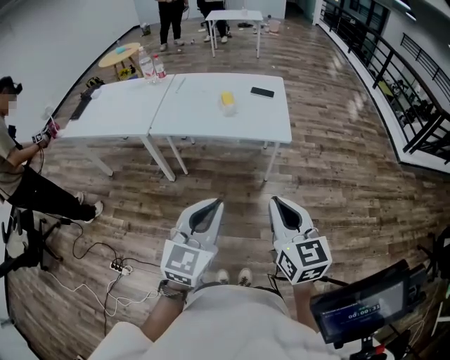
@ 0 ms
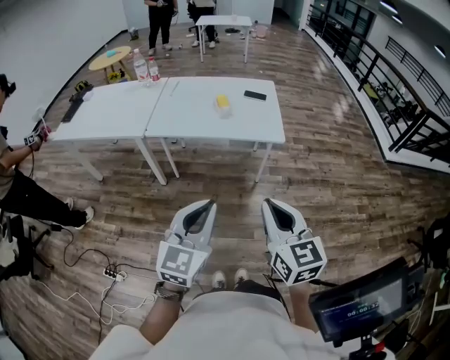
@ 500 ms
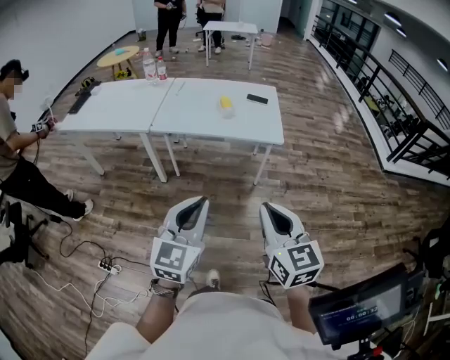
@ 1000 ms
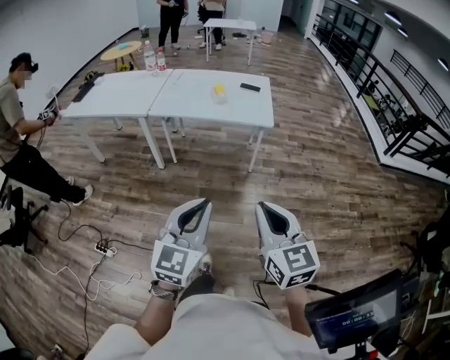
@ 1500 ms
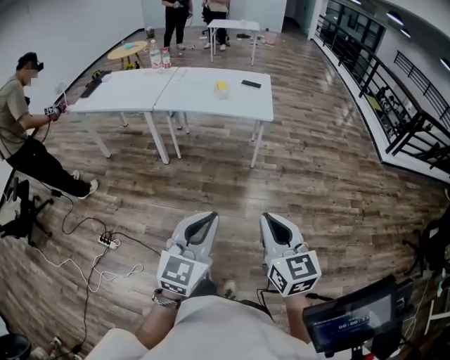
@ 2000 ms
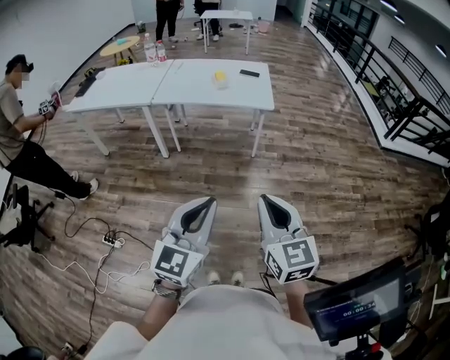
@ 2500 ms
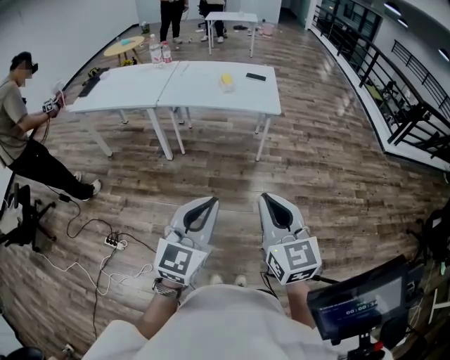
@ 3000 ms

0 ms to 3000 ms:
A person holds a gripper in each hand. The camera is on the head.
0 ms to 1500 ms: Both grippers travel together backward, roughly 15 cm.

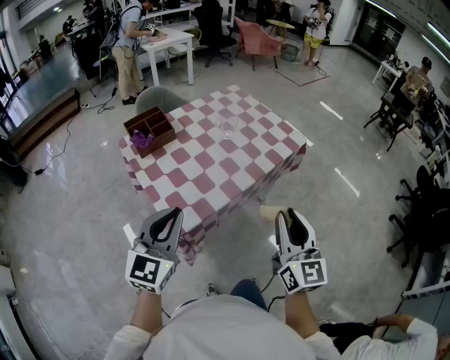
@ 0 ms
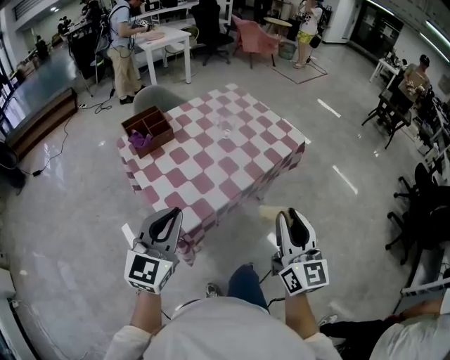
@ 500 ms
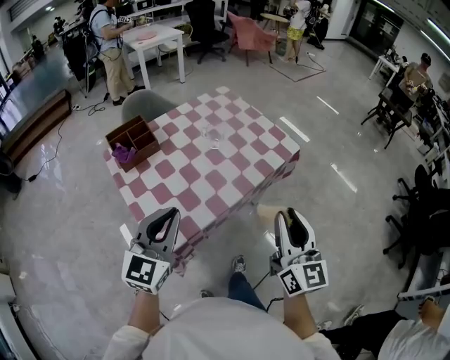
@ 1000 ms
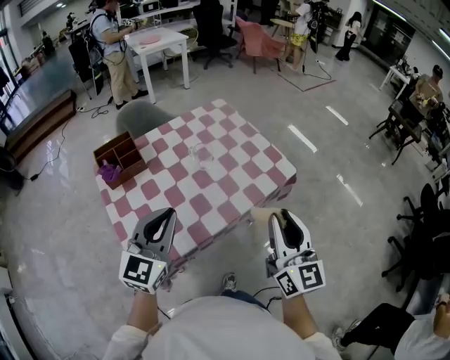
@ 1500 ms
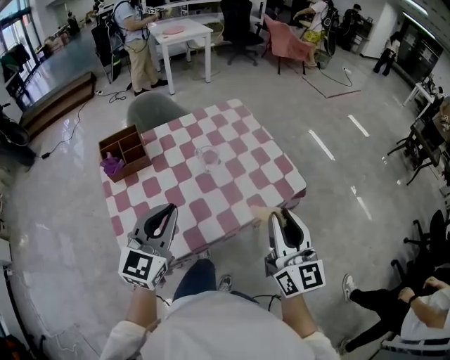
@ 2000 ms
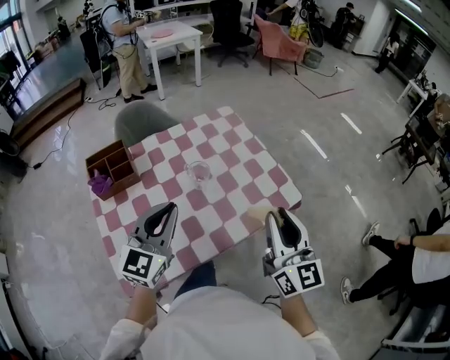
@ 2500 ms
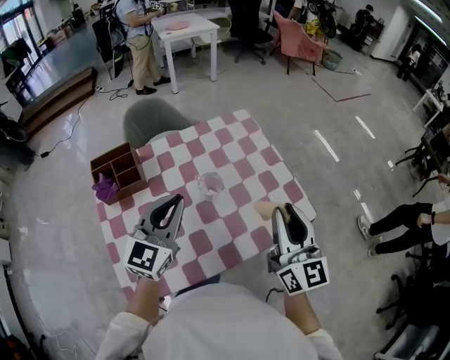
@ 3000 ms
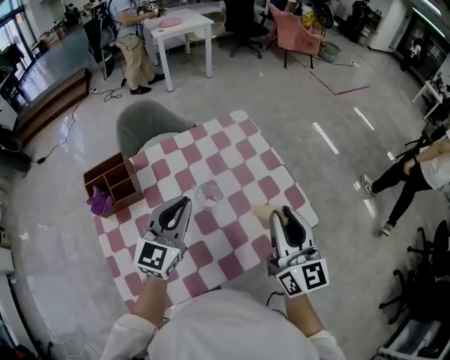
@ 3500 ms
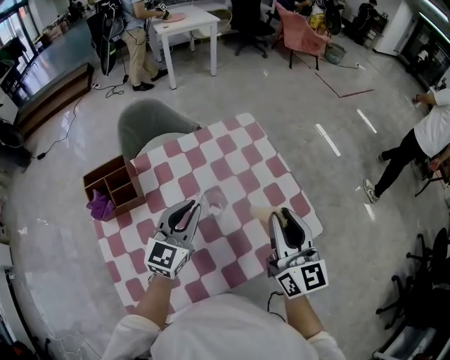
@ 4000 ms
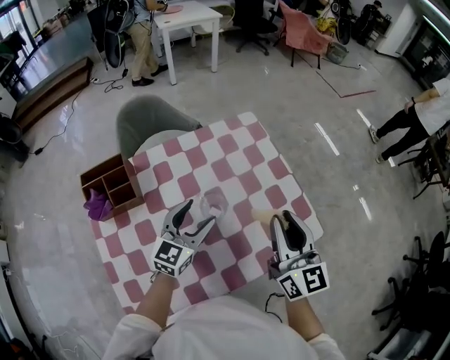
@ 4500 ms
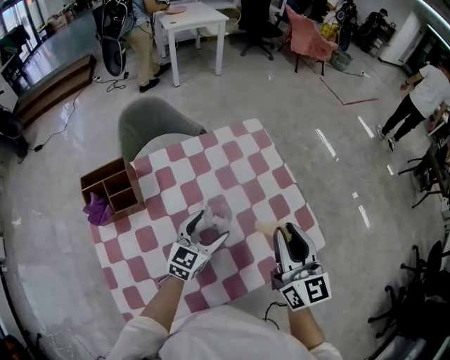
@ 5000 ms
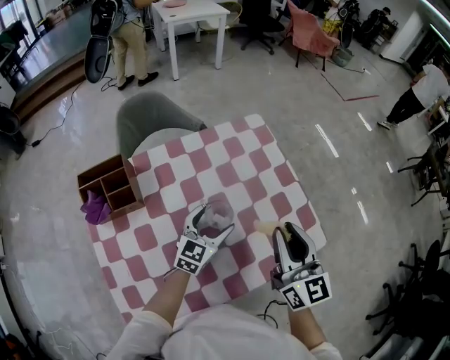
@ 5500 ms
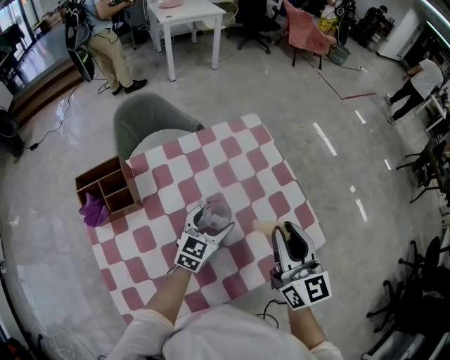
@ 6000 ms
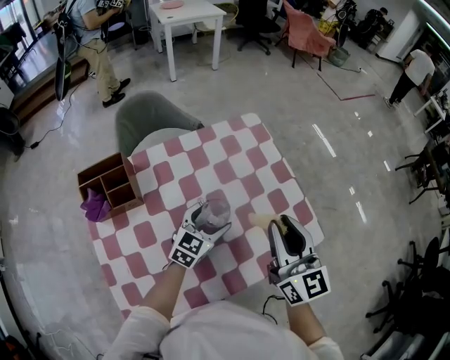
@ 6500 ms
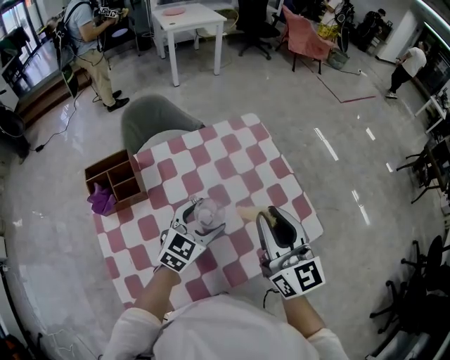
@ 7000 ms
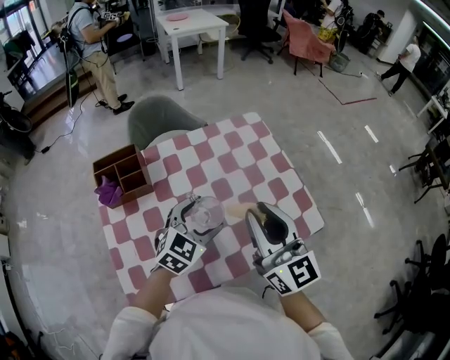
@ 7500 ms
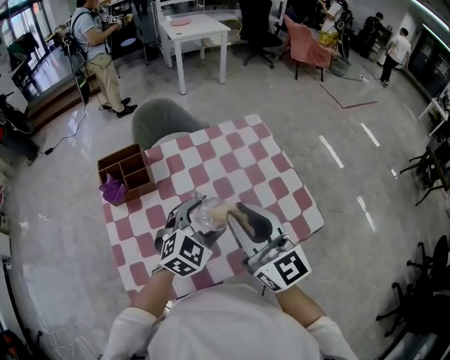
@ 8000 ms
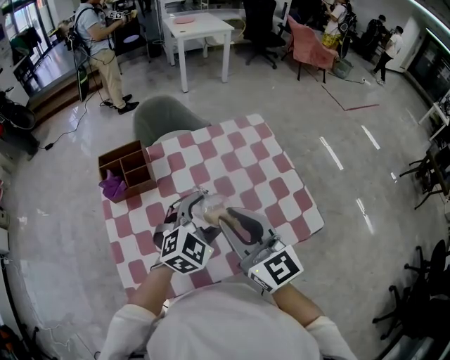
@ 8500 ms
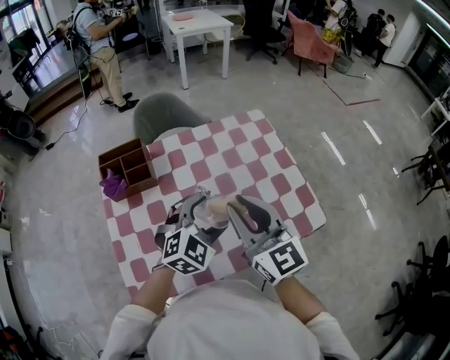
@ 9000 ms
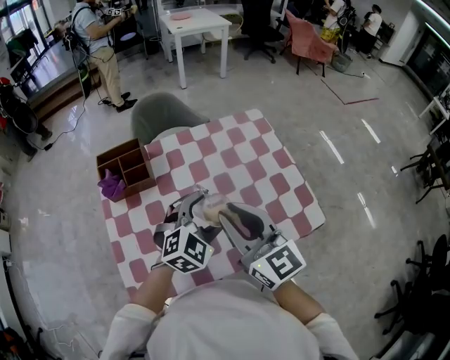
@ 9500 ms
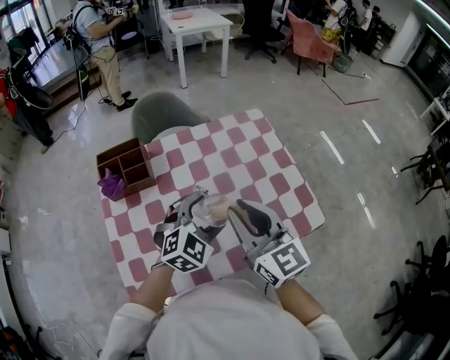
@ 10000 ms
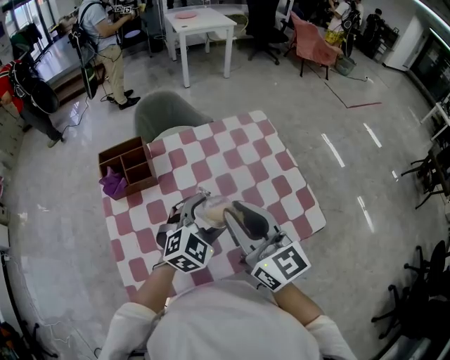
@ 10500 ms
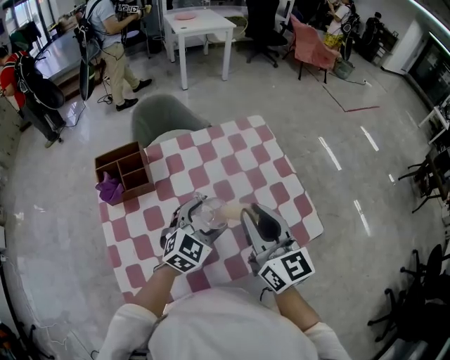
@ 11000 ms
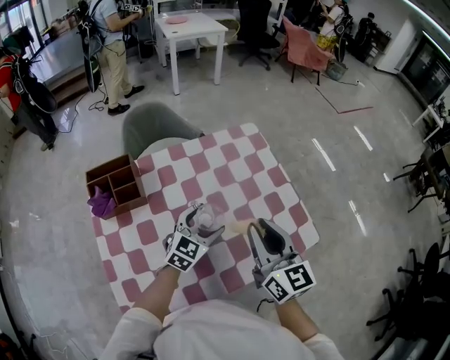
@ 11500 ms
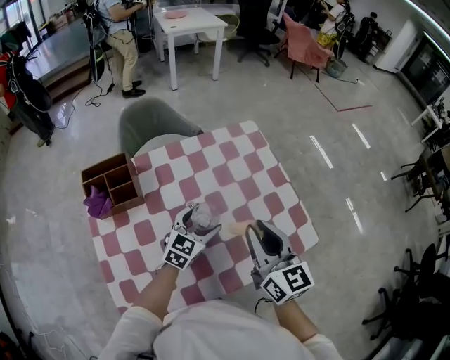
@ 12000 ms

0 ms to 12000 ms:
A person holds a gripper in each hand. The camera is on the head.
0 ms to 2000 ms: The right gripper goes approximately 25 cm forward. The left gripper moves forward and to the right, roughly 25 cm.
2000 ms to 4000 ms: Both grippers move forward, roughly 25 cm.
4000 ms to 6000 ms: The left gripper goes approximately 15 cm downward and to the right, and opens.
6000 ms to 8000 ms: The left gripper goes some 15 cm upward and backward, and turns by some 30 degrees. The right gripper travels to the left, backward and upward by some 15 cm, and rotates roughly 20 degrees.
8000 ms to 10000 ms: There are only small adjustments of the grippers.
10000 ms to 12000 ms: The left gripper moves downward and forward, roughly 15 cm, and turns by some 30 degrees; the right gripper moves to the right, some 5 cm.

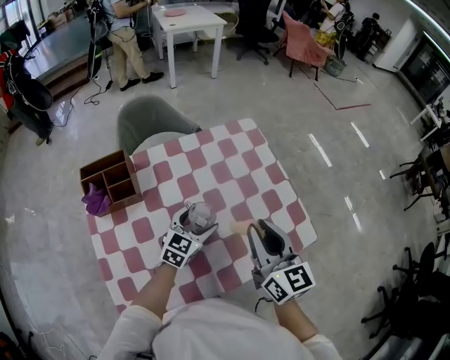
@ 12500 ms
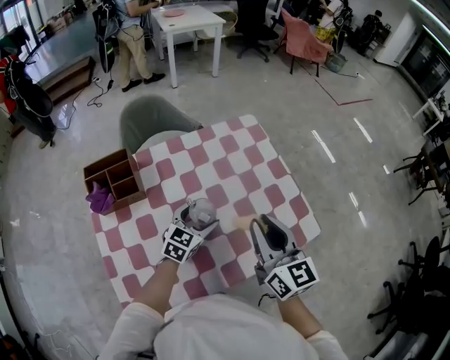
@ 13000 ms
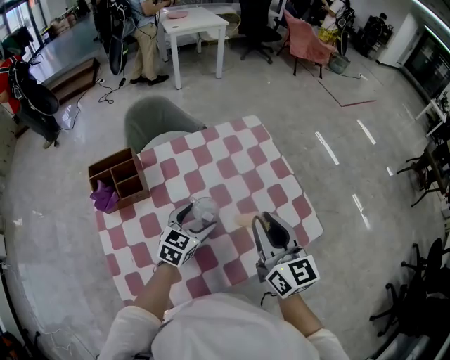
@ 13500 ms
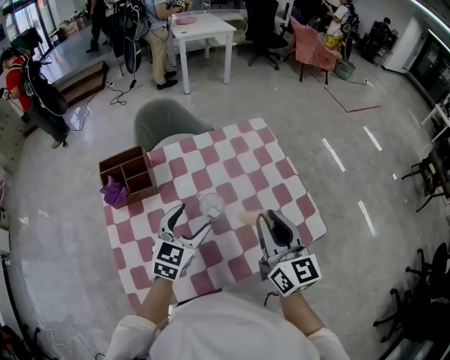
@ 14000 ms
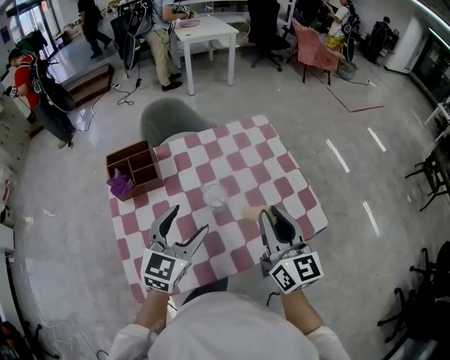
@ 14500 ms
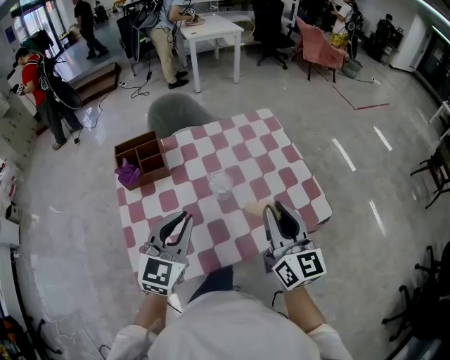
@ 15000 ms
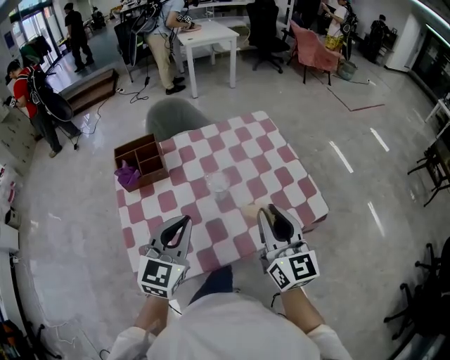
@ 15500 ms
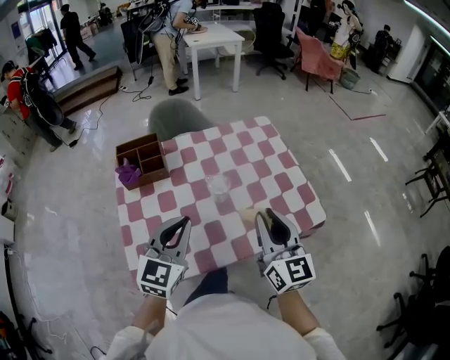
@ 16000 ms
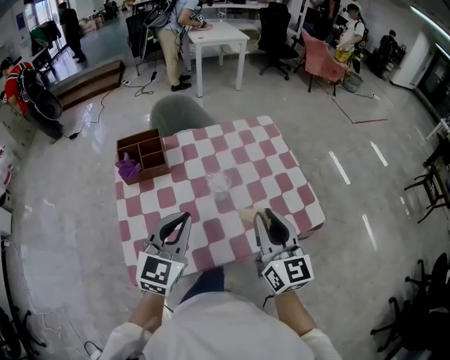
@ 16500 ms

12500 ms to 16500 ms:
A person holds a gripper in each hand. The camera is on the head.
12500 ms to 14500 ms: The left gripper is displaced upward and backward by about 20 cm. The right gripper is displaced backward by roughly 5 cm.
14500 ms to 16500 ms: Both grippers travel together backward, roughly 5 cm. The left gripper closes up.

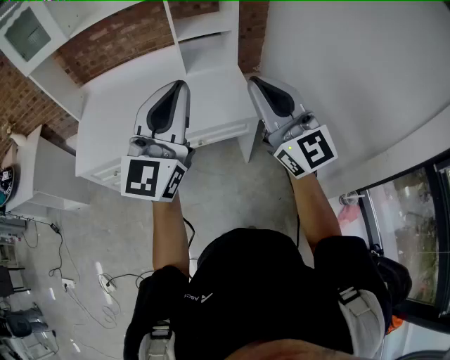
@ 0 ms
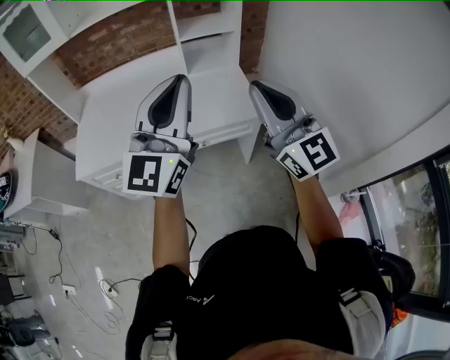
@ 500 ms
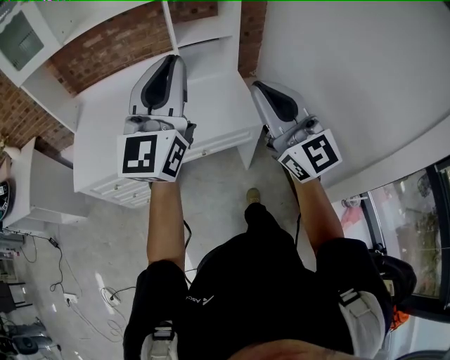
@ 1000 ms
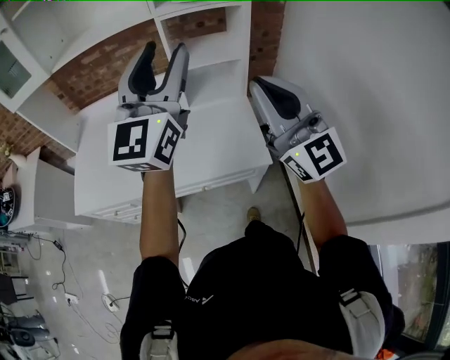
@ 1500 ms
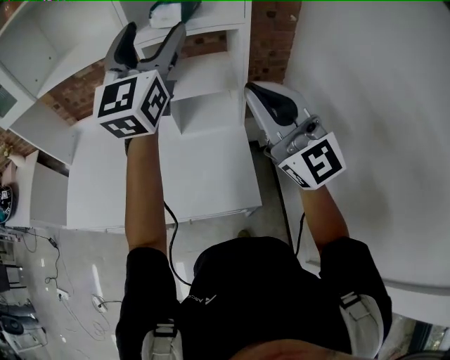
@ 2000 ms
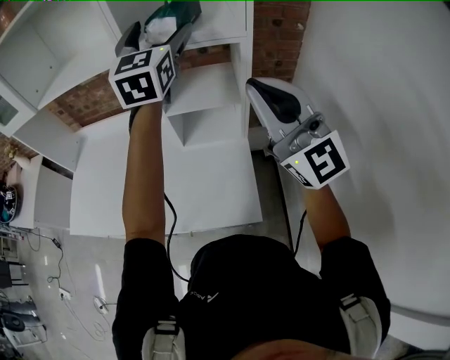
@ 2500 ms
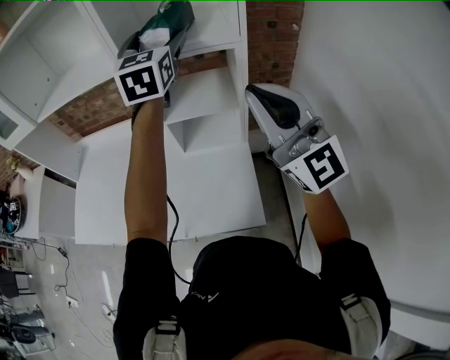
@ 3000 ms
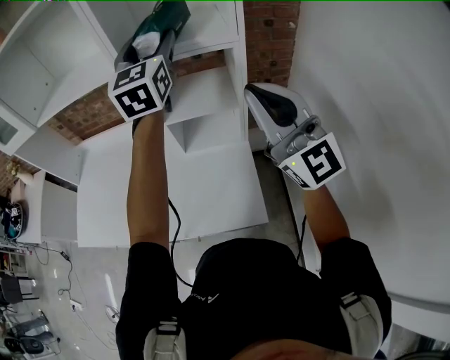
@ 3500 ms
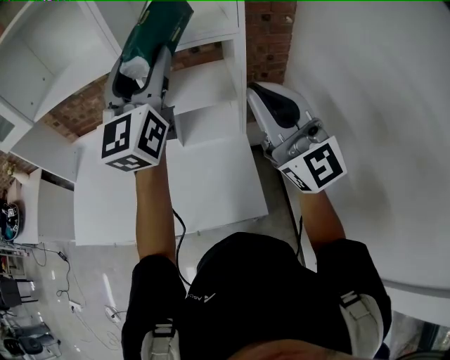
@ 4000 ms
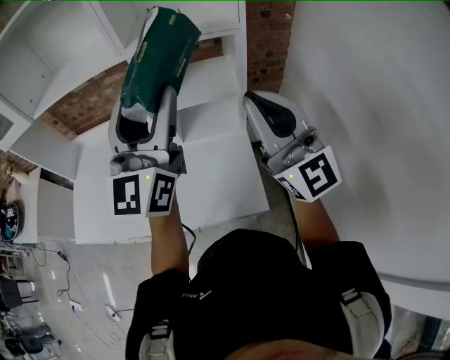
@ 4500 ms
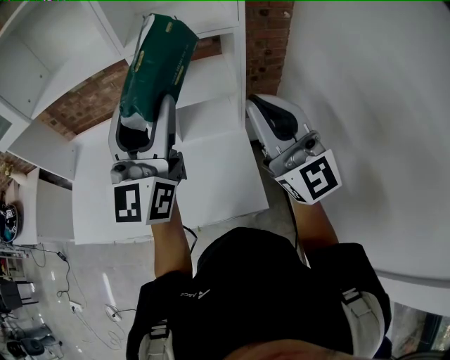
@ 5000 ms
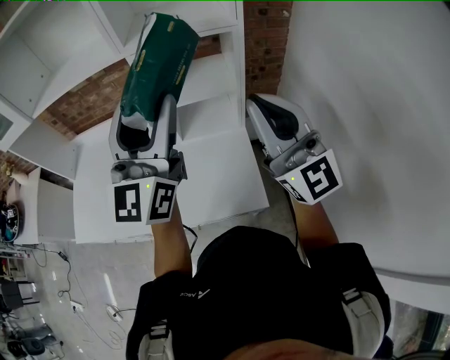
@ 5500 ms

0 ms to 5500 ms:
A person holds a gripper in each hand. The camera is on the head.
0 ms to 2000 ms: The left gripper goes some 30 cm forward, and opens its fingers. Meanwhile the right gripper moves forward, about 20 cm.
2000 ms to 3500 ms: The left gripper goes approximately 10 cm forward. The right gripper ends up about 5 cm from where it was.
3500 ms to 5500 ms: The right gripper heads backward, covering roughly 5 cm. Meanwhile the left gripper moves backward, roughly 20 cm, and rotates roughly 20 degrees.

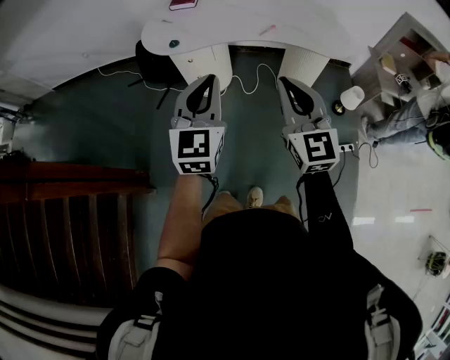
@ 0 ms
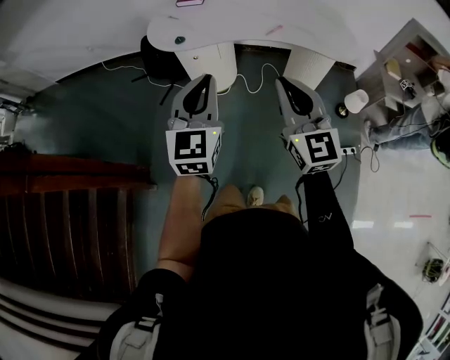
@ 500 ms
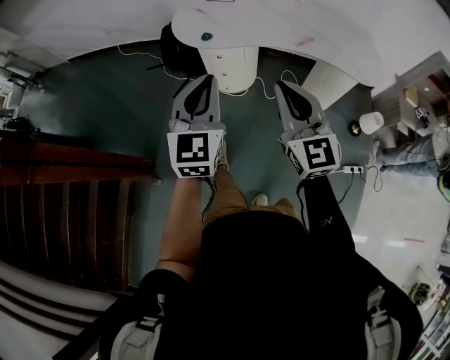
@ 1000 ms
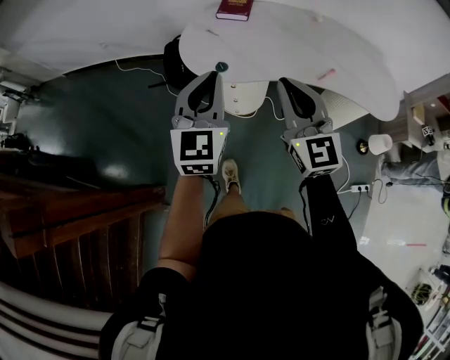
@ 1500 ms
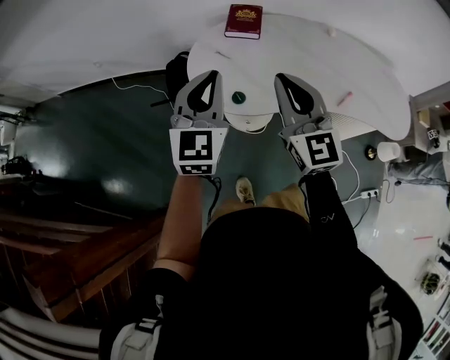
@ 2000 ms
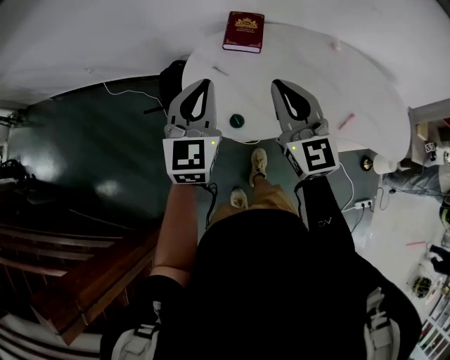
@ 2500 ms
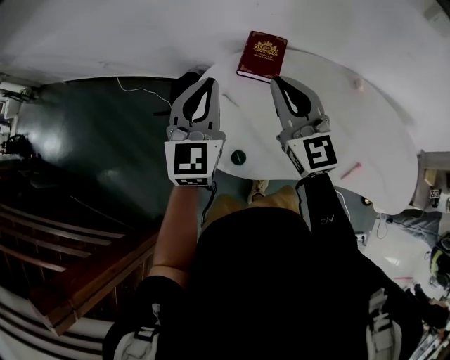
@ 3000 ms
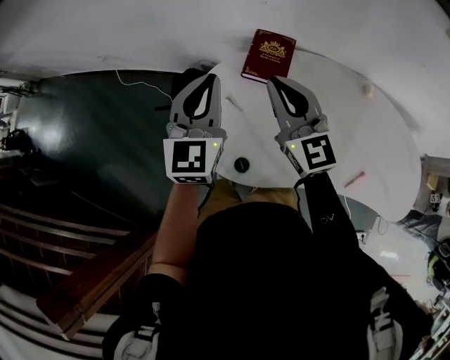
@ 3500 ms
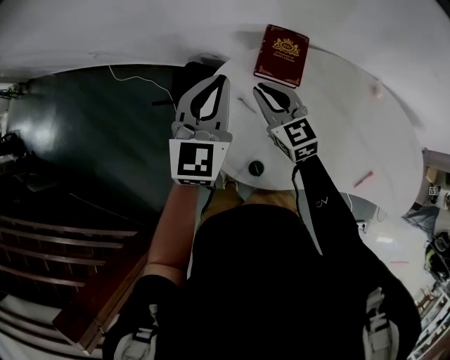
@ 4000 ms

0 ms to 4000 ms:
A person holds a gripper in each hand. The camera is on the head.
0 ms to 2000 ms: The pair of grippers is taken forward and to the left, about 50 cm.
2000 ms to 4000 ms: The left gripper is displaced forward by approximately 30 cm; the right gripper moves forward and downward, about 40 cm, and turns by about 30 degrees.
